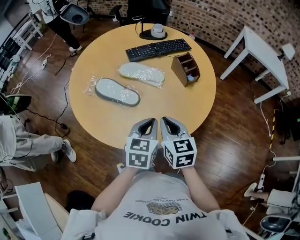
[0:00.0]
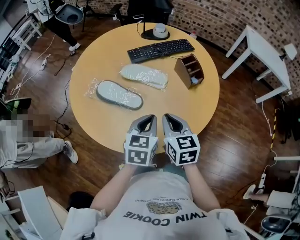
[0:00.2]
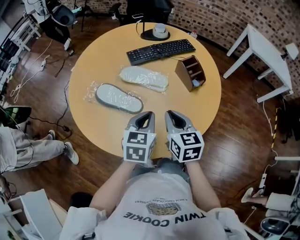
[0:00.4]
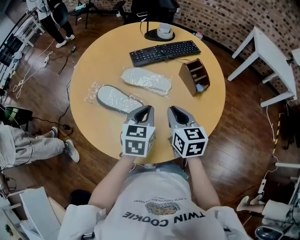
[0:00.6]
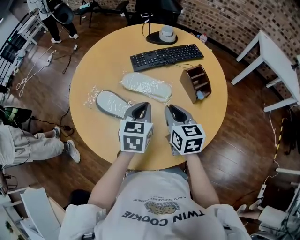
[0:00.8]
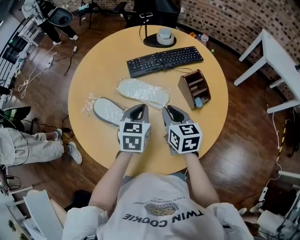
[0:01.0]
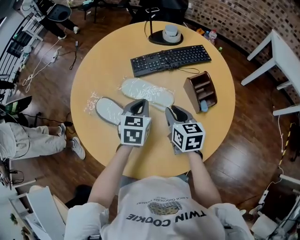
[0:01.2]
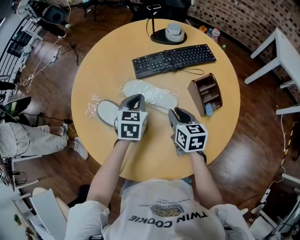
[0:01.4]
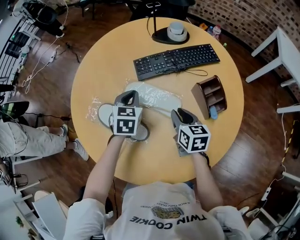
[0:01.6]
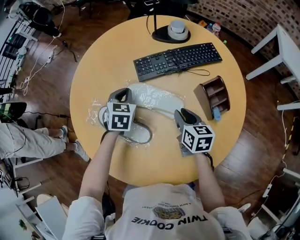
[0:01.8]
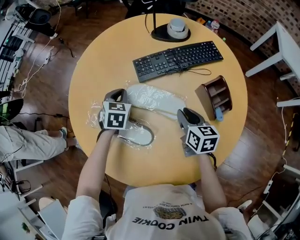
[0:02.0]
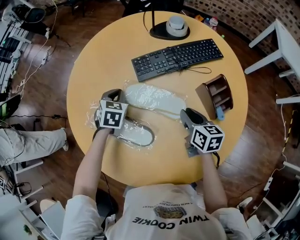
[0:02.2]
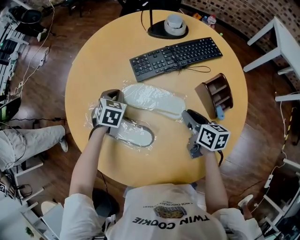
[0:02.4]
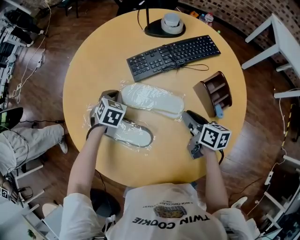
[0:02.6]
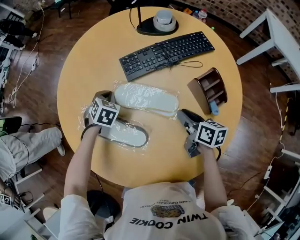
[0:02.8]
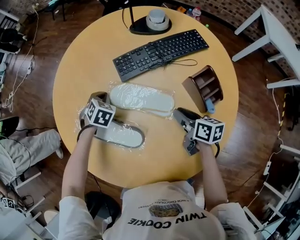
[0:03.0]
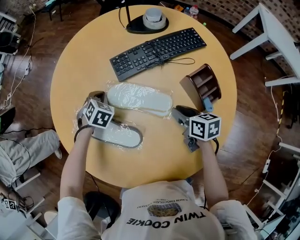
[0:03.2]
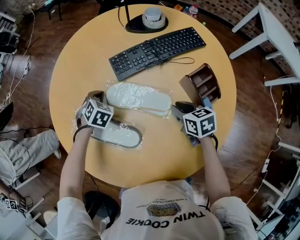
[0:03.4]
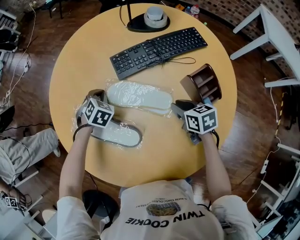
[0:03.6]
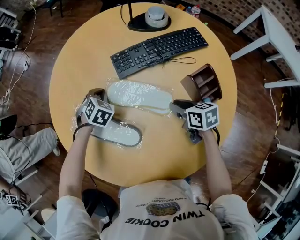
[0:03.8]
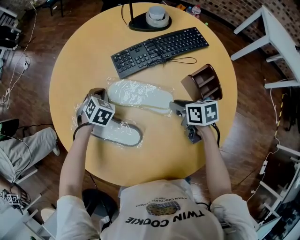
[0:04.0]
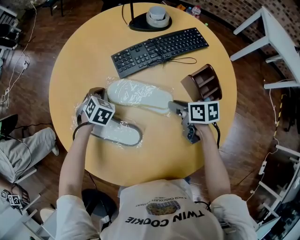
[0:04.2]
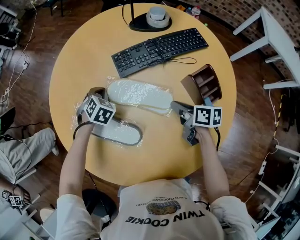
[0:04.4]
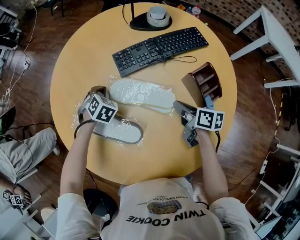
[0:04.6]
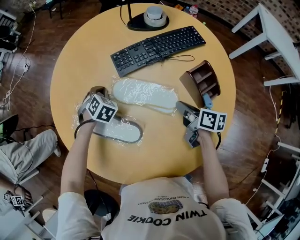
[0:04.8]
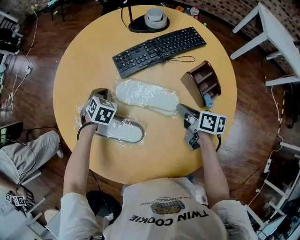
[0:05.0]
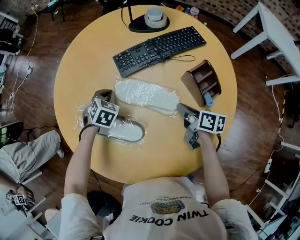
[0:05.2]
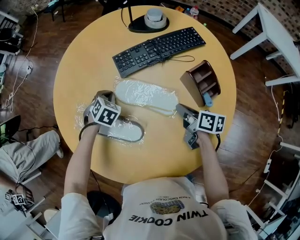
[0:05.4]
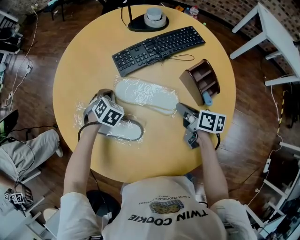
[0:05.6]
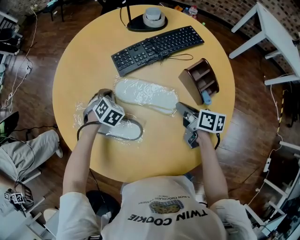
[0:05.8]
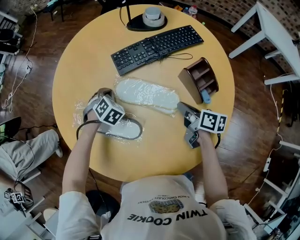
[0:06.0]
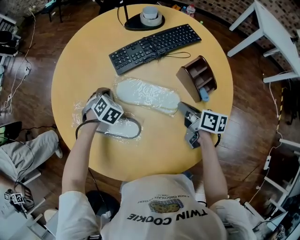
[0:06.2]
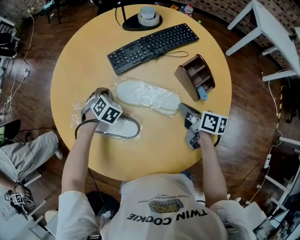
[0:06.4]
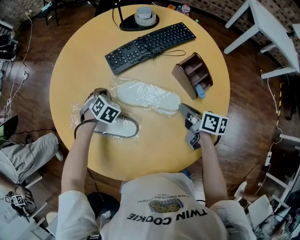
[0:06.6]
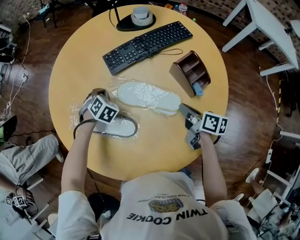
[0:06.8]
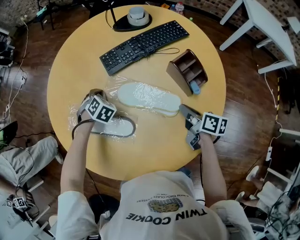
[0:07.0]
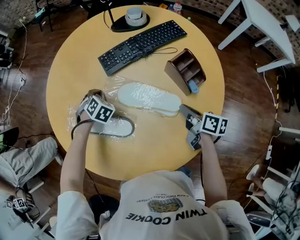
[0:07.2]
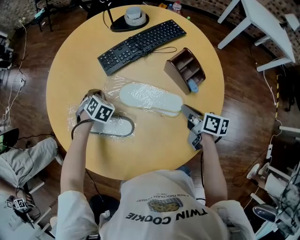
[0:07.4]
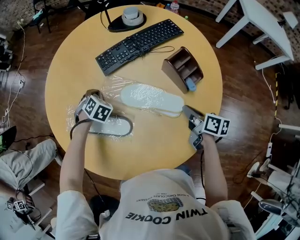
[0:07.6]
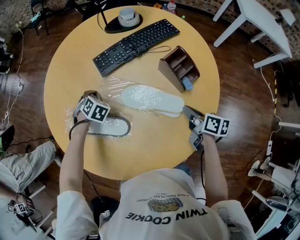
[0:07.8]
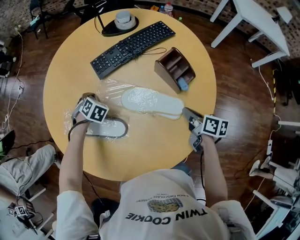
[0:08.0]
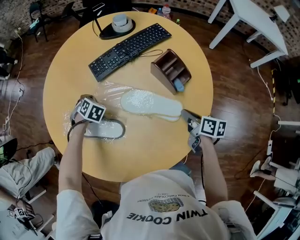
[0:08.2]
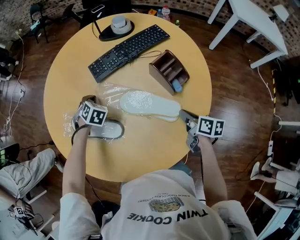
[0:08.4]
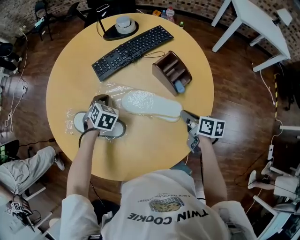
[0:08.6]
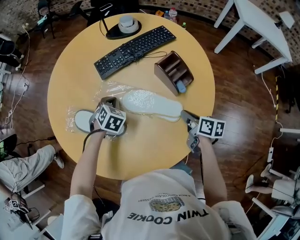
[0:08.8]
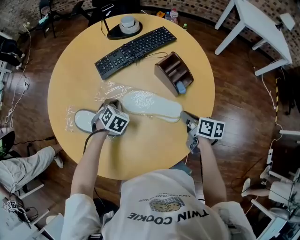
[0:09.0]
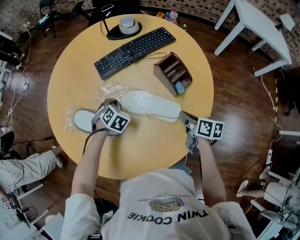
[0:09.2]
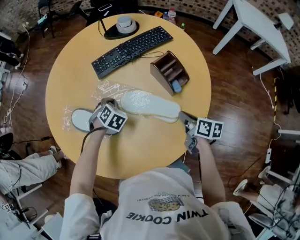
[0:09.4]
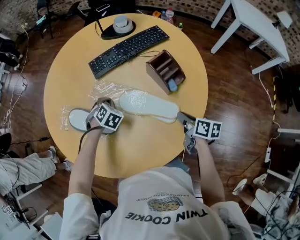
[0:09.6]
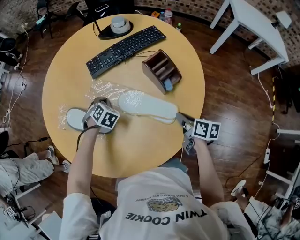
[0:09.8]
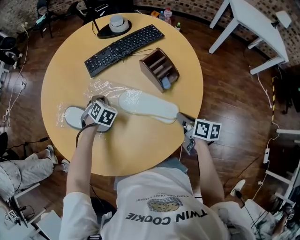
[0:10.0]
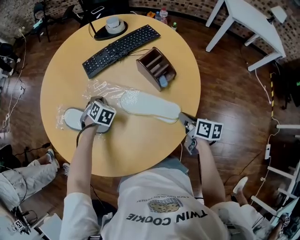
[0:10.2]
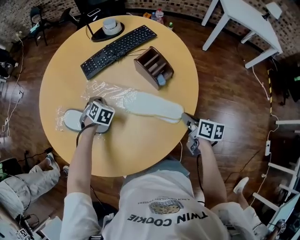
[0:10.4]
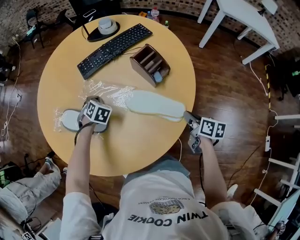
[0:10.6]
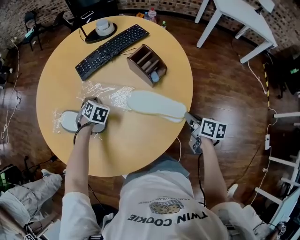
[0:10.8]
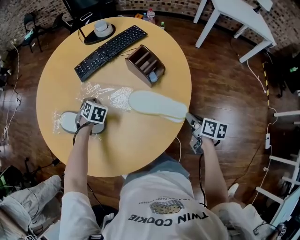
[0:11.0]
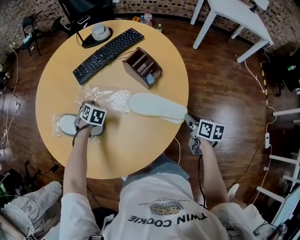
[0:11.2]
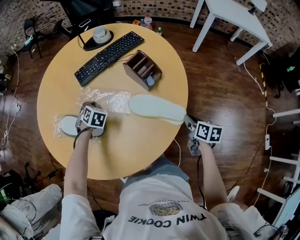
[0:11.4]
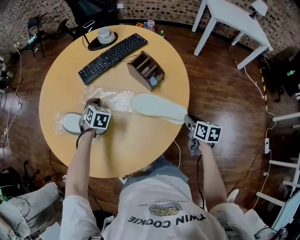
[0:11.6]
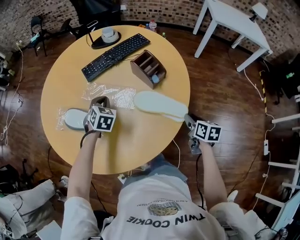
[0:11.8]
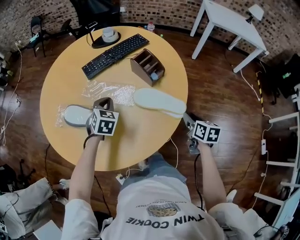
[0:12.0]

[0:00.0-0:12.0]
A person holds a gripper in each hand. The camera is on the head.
0:00.0 to 0:01.6: The left gripper moves forward, roughly 35 cm, and turns by approximately 20 degrees; the right gripper moves forward and downward, approximately 25 cm.
0:01.6 to 0:03.0: The right gripper turns by roughly 20 degrees. Meanwhile the left gripper moves downward, to the left and forward, about 15 cm, and swivels some 30 degrees.
0:04.4 to 0:06.0: The right gripper shifts by roughly 5 cm.
0:06.0 to 0:07.6: The right gripper is displaced backward by roughly 10 cm.
0:07.6 to 0:09.0: The left gripper shifts some 15 cm backward and to the right.
0:09.0 to 0:10.4: The right gripper travels backward by approximately 10 cm.
0:10.4 to 0:12.0: The left gripper is displaced upward and backward by about 15 cm, and swivels about 20 degrees, while the right gripper moves backward, about 5 cm, and swivels some 20 degrees.

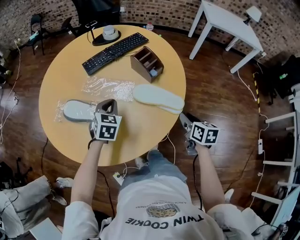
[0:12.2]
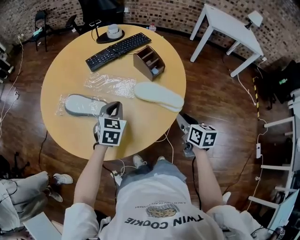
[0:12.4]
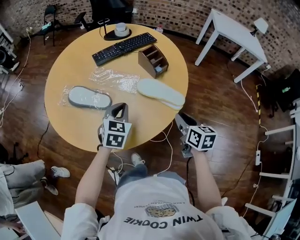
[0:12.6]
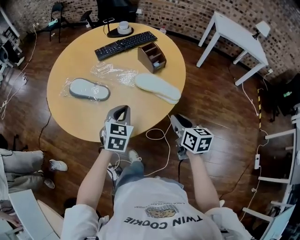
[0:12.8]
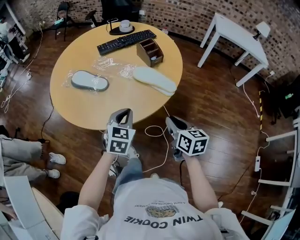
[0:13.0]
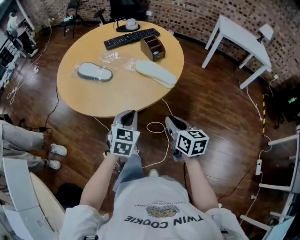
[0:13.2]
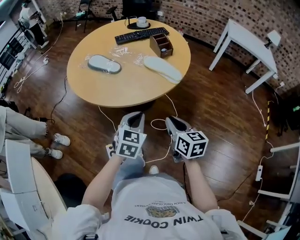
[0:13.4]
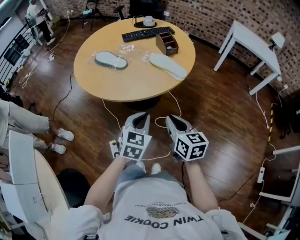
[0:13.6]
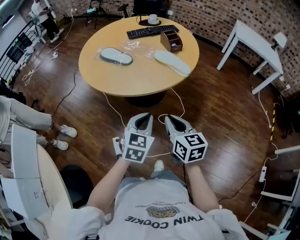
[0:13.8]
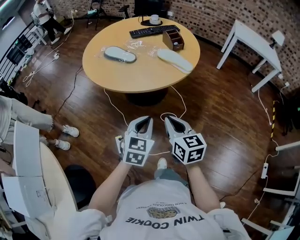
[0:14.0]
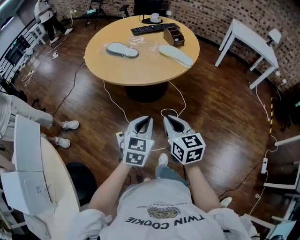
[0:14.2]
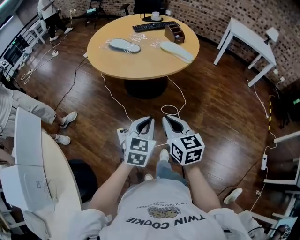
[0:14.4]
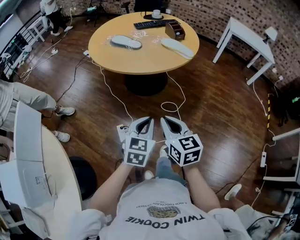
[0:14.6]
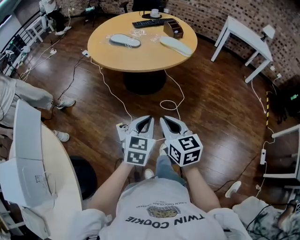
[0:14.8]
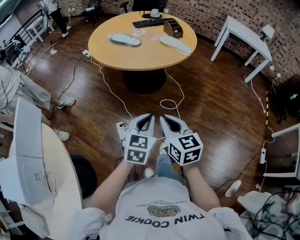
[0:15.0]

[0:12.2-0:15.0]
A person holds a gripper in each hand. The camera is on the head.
0:12.2 to 0:13.6: Both grippers move backward, roughly 35 cm. The right gripper turns by about 30 degrees.
0:13.6 to 0:15.0: Both grippers move backward and to the left, roughly 30 cm.

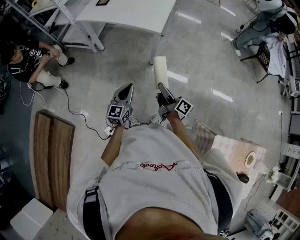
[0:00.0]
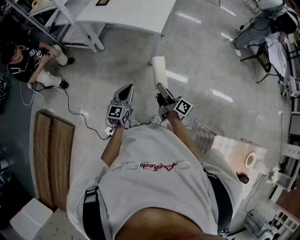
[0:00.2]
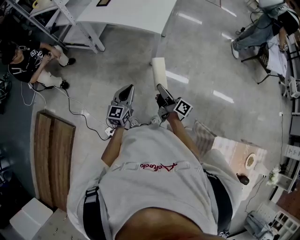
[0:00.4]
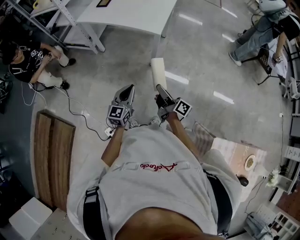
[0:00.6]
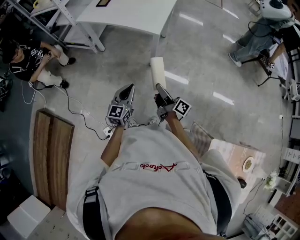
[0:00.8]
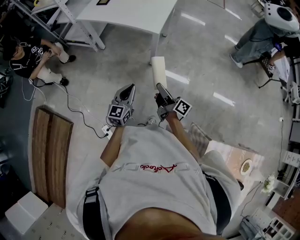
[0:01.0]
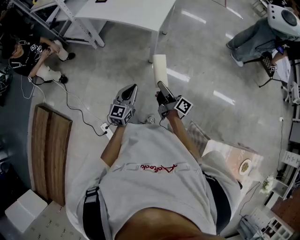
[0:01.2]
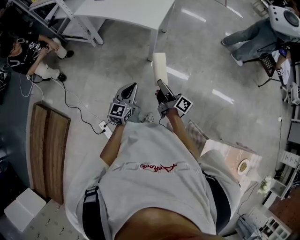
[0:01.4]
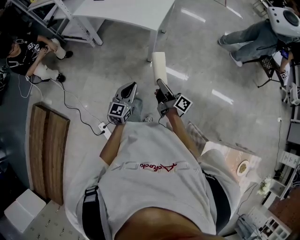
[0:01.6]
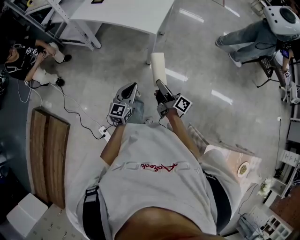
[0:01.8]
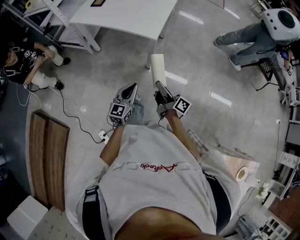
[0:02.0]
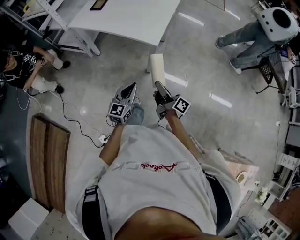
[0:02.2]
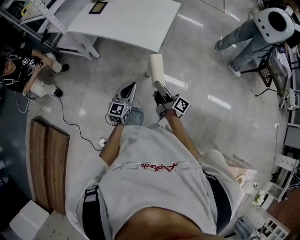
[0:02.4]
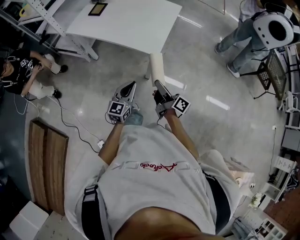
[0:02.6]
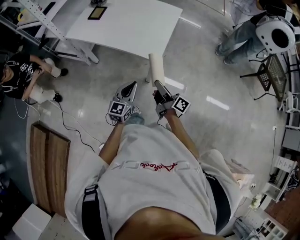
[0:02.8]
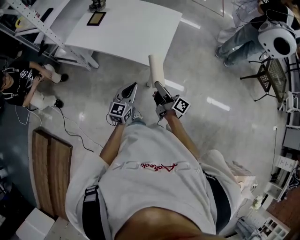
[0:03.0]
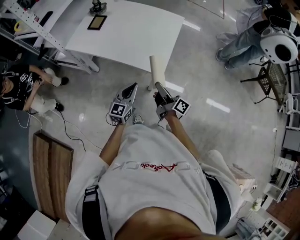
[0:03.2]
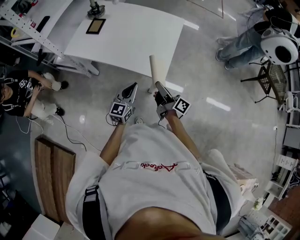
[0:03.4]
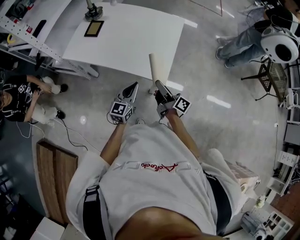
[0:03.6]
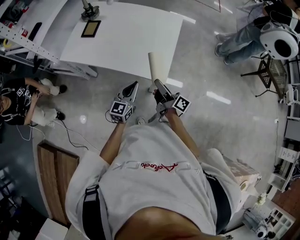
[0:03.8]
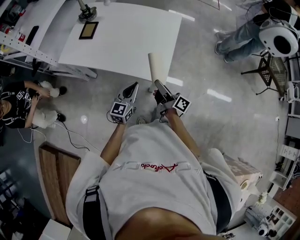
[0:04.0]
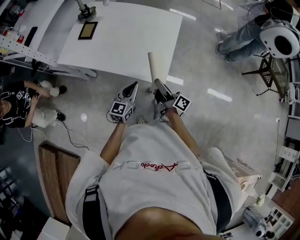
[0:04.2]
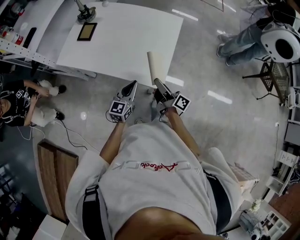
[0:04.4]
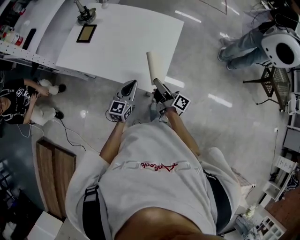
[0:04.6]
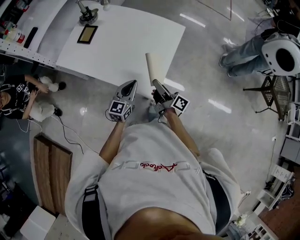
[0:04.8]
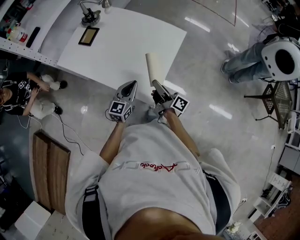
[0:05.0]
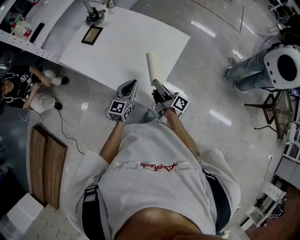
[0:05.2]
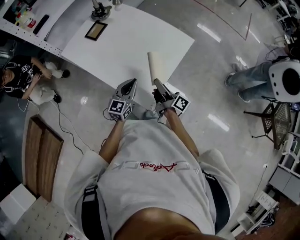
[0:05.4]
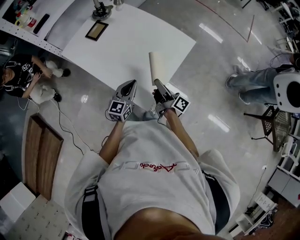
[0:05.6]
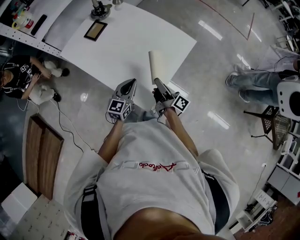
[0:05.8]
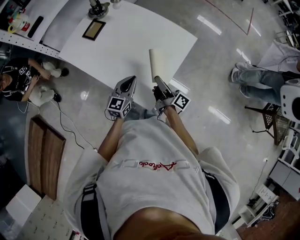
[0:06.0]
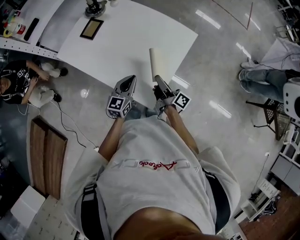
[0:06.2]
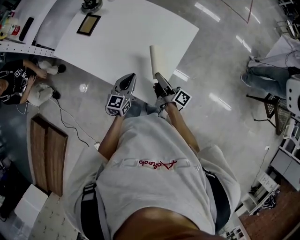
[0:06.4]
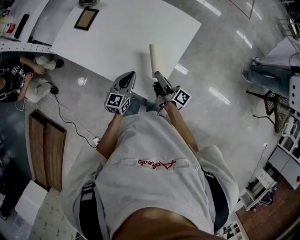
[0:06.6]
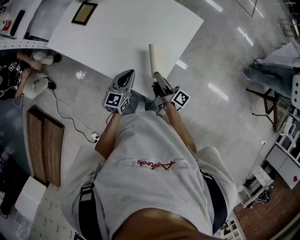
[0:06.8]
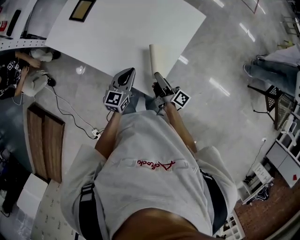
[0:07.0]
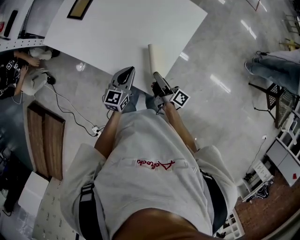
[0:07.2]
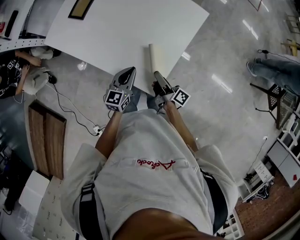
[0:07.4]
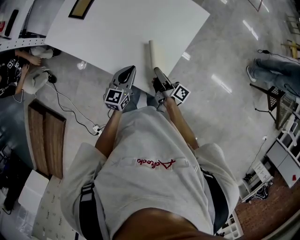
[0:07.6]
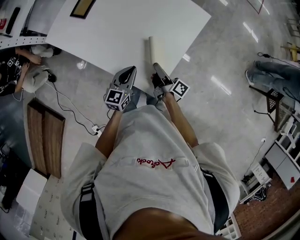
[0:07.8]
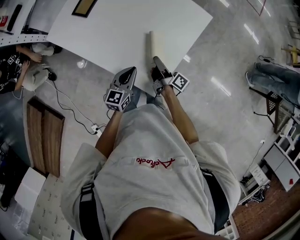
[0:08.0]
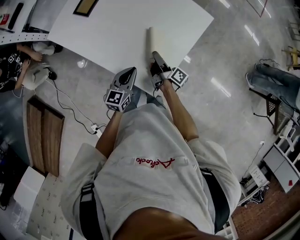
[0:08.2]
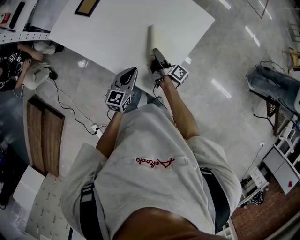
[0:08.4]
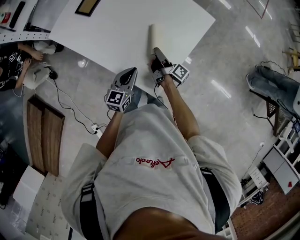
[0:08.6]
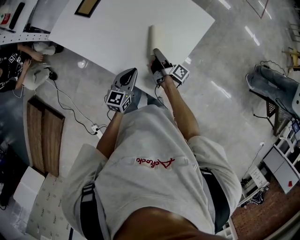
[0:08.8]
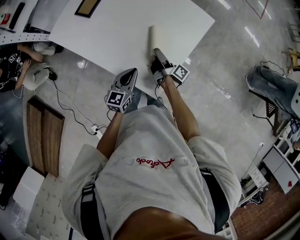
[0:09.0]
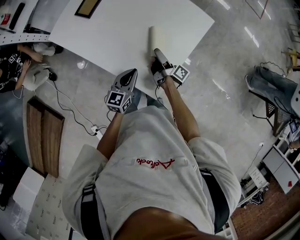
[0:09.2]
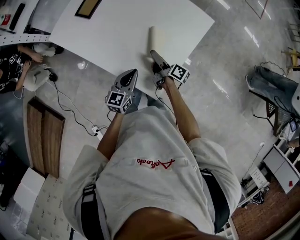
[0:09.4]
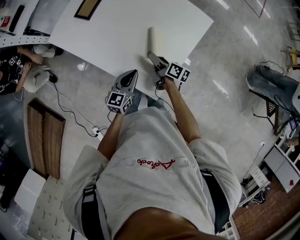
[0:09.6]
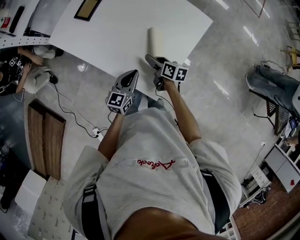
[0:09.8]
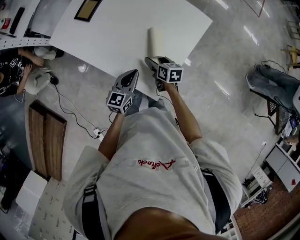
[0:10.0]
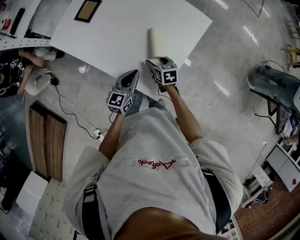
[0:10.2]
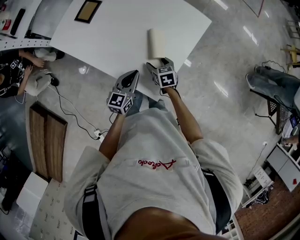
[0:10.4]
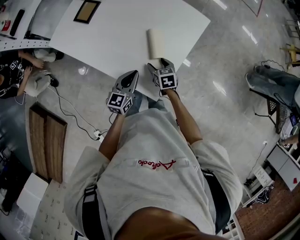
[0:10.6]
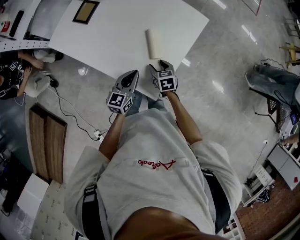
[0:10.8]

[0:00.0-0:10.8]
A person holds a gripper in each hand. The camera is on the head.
0:00.0 to 0:01.6: The right gripper shifts by approximately 5 cm, while the left gripper heads to the right, covering approximately 5 cm.
0:01.6 to 0:03.0: Both grippers move forward, about 25 cm.
0:03.0 to 0:04.6: The grippers both shift forward by approximately 20 cm.
0:04.6 to 0:06.2: The grippers both shift forward by approximately 10 cm.
0:06.2 to 0:07.8: The right gripper moves downward, some 10 cm. The left gripper is displaced downward by roughly 5 cm.
0:07.8 to 0:09.2: The right gripper moves forward, about 5 cm.
0:09.2 to 0:10.8: The right gripper ends up roughly 5 cm from where it was, and rotates around the line of its fingers by about 70 degrees, counterclockwise from behind.
